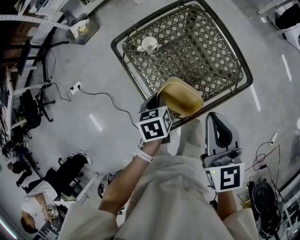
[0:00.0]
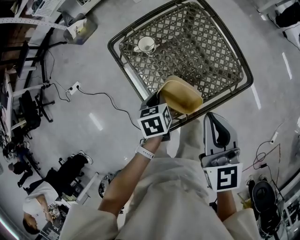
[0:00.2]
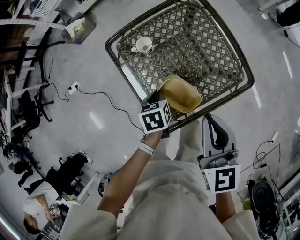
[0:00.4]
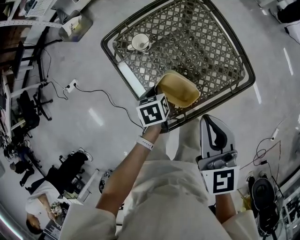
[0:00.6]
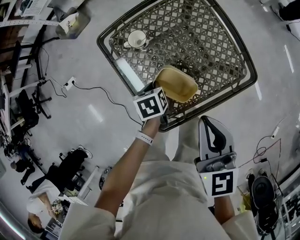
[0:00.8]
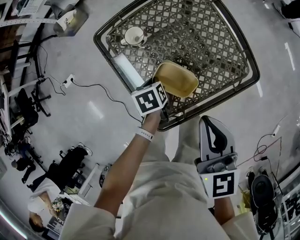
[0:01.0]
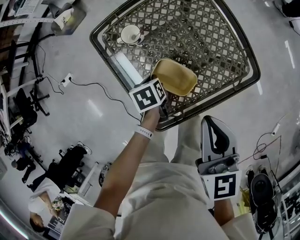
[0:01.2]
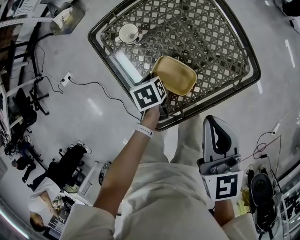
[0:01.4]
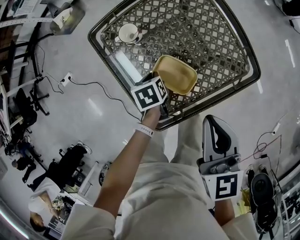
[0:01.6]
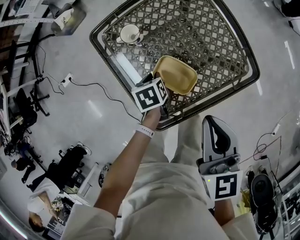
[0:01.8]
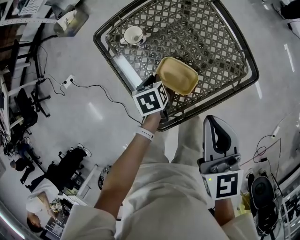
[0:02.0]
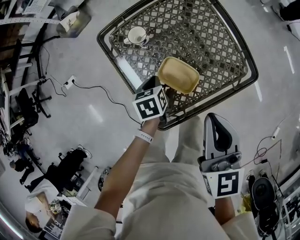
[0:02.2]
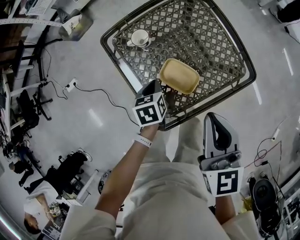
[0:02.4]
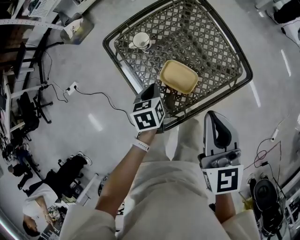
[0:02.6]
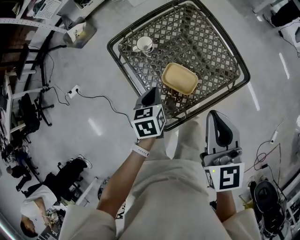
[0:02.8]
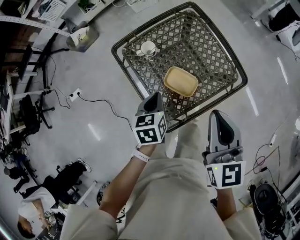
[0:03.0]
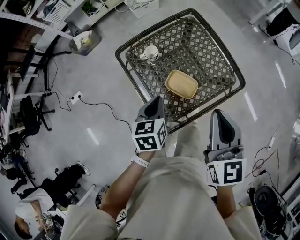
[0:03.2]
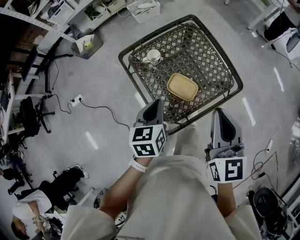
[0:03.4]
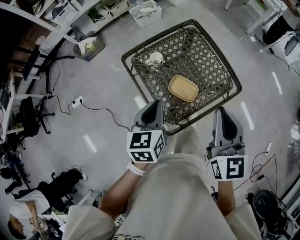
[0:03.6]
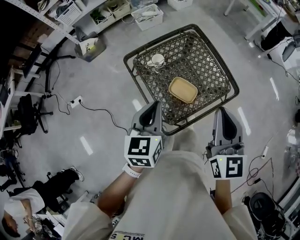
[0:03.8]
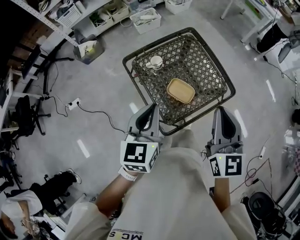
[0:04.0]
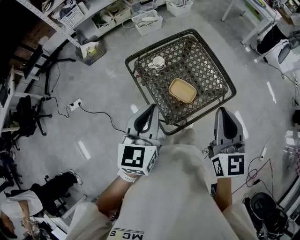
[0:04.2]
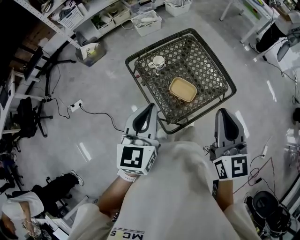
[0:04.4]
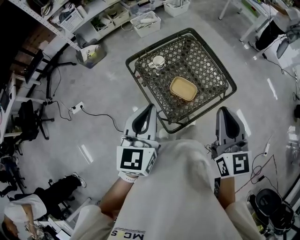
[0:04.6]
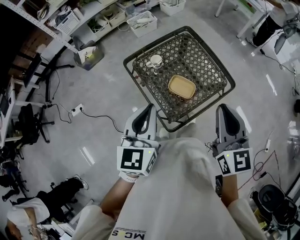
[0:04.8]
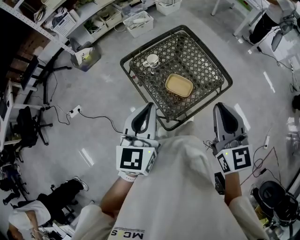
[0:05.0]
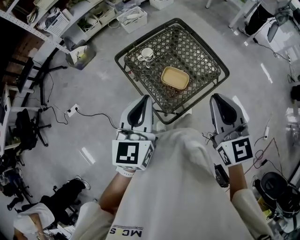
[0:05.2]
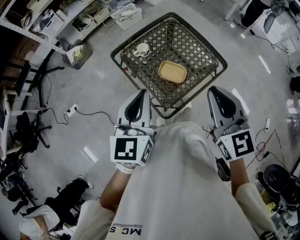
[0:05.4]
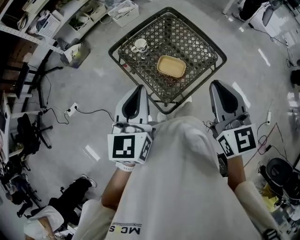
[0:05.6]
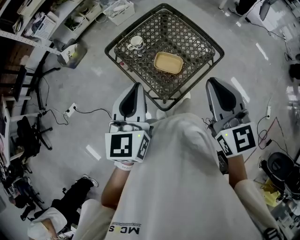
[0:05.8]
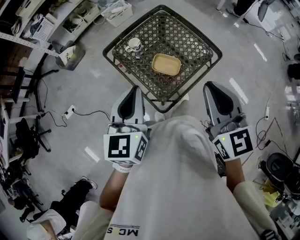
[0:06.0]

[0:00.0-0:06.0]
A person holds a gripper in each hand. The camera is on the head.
0:00.0 to 0:01.6: The right gripper shifts about 5 cm downward, while the left gripper shifts some 15 cm downward.
0:01.6 to 0:03.0: The left gripper moves upward, roughly 15 cm, and turns by roughly 30 degrees. Meanwhile the right gripper moves upward, approximately 10 cm.
0:03.0 to 0:04.4: The right gripper shifts about 10 cm upward and backward. Meanwhile the left gripper moves upward, approximately 25 cm, and tilts its fingers approximately 30 degrees upward.
0:04.4 to 0:06.0: The grippers stay close to where they were, moving slightly.

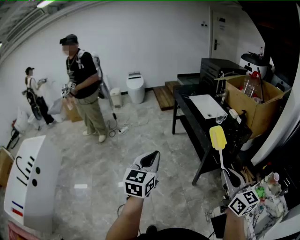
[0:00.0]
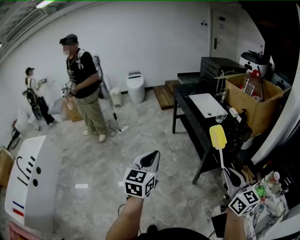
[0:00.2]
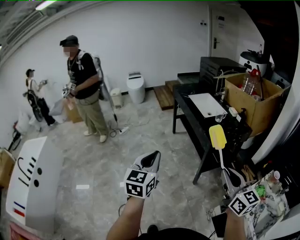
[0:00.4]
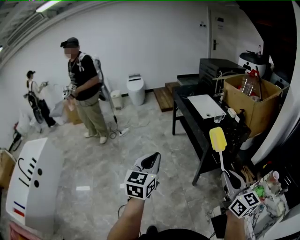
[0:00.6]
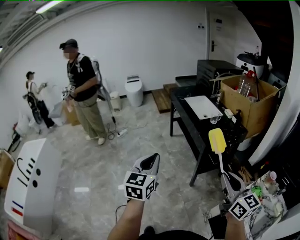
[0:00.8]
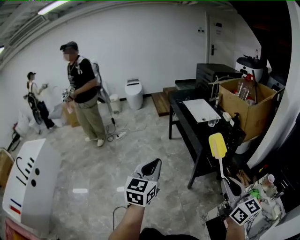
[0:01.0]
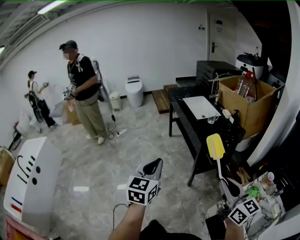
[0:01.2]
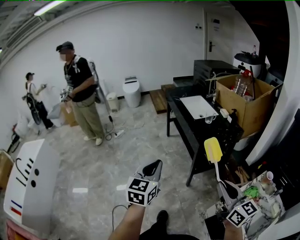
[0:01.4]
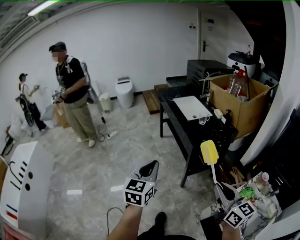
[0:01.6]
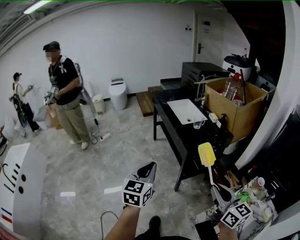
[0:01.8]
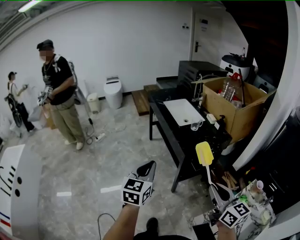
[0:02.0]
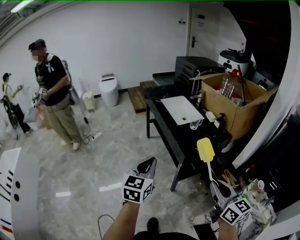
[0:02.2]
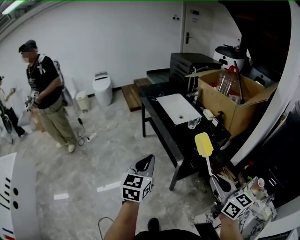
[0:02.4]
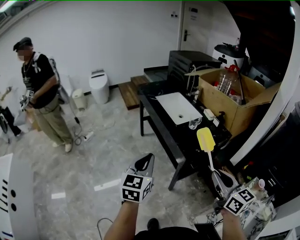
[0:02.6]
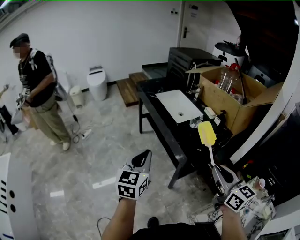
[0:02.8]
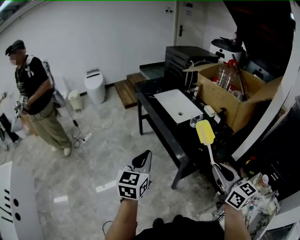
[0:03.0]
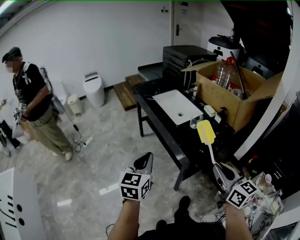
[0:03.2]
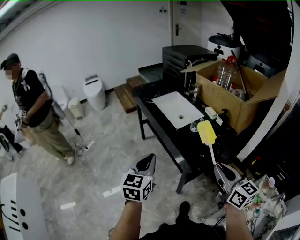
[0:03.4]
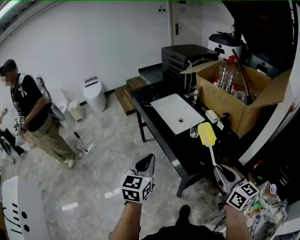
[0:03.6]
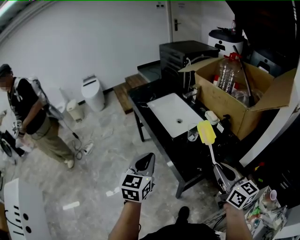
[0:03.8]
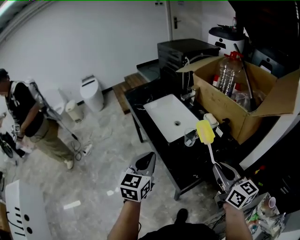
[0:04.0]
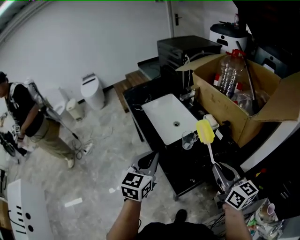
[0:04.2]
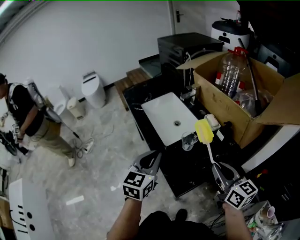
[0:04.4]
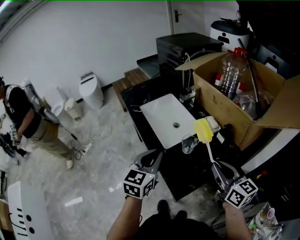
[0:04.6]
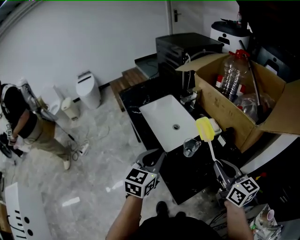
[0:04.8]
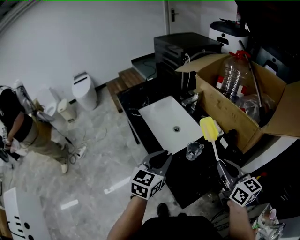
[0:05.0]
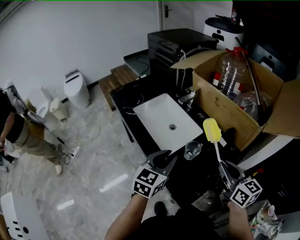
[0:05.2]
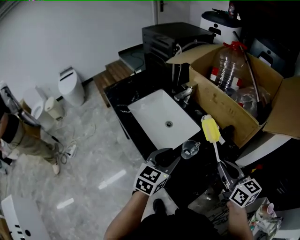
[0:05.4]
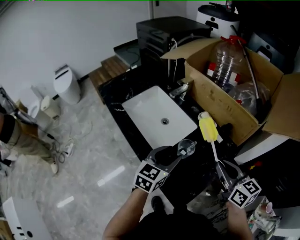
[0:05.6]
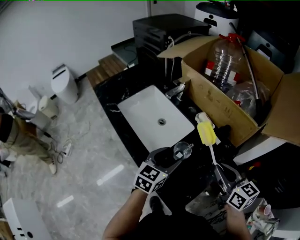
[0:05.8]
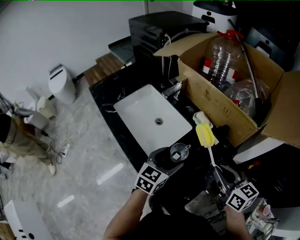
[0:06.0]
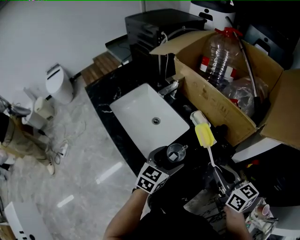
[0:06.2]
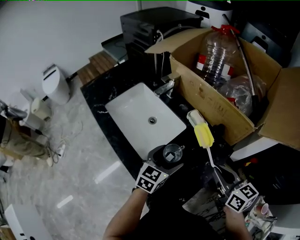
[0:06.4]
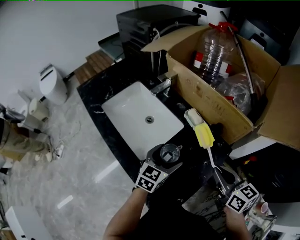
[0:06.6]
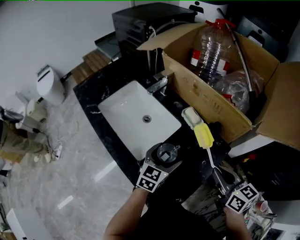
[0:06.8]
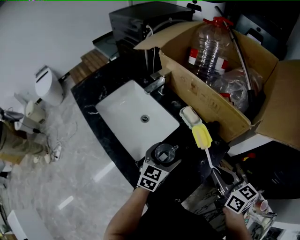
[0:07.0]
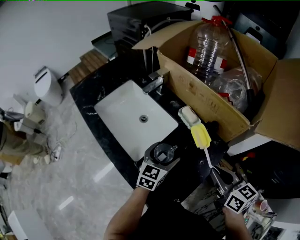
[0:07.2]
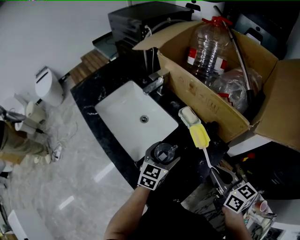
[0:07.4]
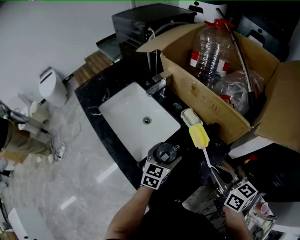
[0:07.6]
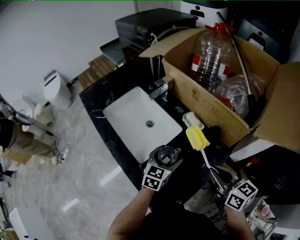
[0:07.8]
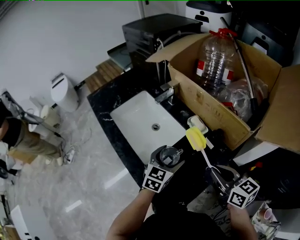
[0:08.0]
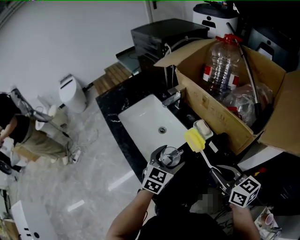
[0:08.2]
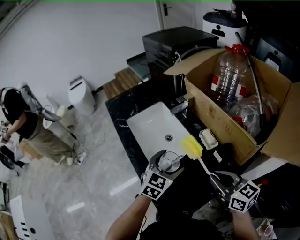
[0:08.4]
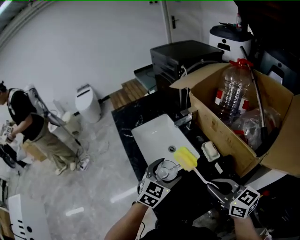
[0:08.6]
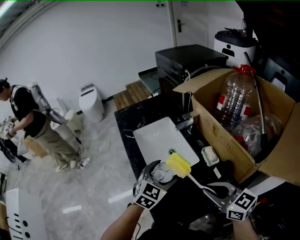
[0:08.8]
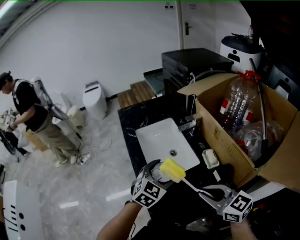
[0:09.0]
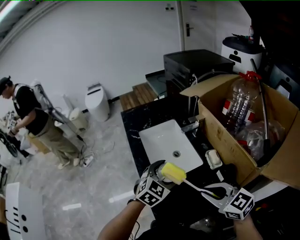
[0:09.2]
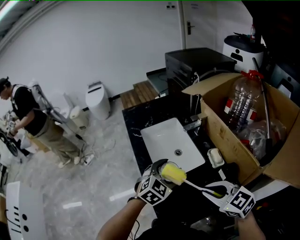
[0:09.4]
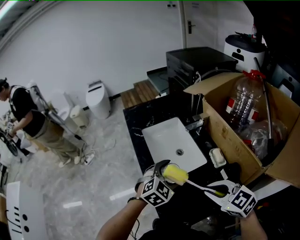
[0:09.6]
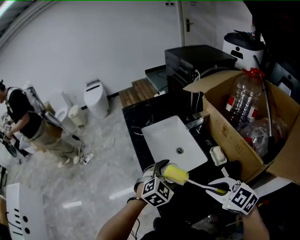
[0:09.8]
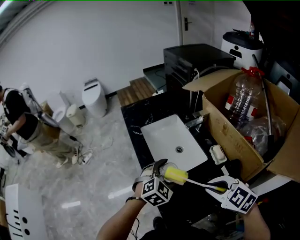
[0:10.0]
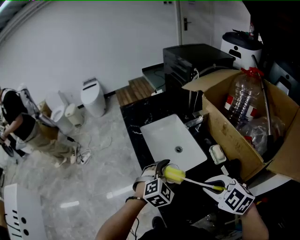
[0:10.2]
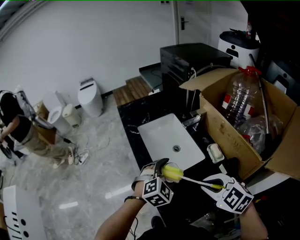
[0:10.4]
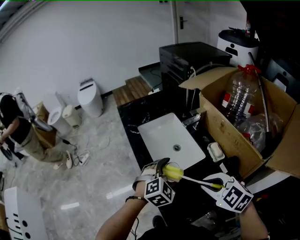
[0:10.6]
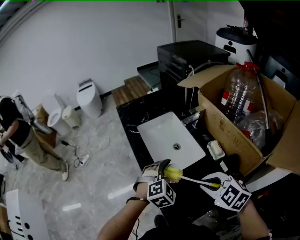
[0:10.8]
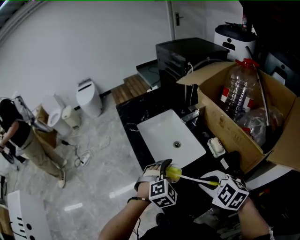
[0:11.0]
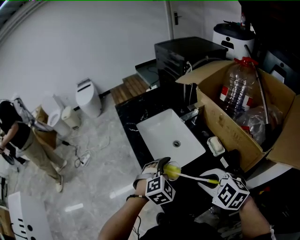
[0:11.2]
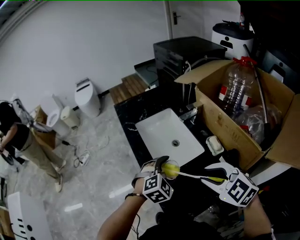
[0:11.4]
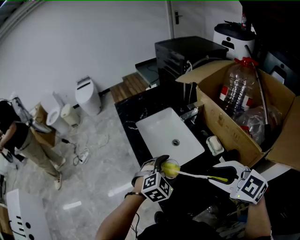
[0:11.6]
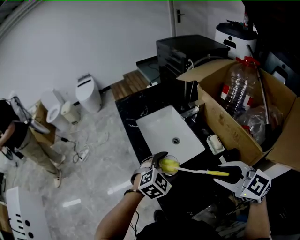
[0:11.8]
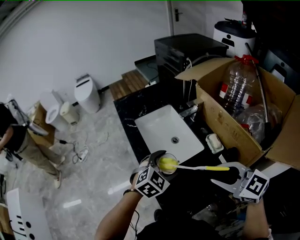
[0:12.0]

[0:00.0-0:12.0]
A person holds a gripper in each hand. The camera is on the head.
0:00.0 to 0:01.6: The grippers both shift to the right by roughly 10 cm.
0:01.6 to 0:03.0: The two grippers go roughly 25 cm forward.
0:03.0 to 0:04.4: The two grippers go roughly 30 cm forward and to the right.
0:04.4 to 0:06.0: The left gripper shifts roughly 20 cm forward, downward and to the right, swivels roughly 30 degrees, and opens its fingers. The right gripper shifts roughly 10 cm forward and downward.
0:06.0 to 0:07.6: The left gripper moves forward and downward, about 10 cm.
0:07.6 to 0:09.0: The left gripper heads upward, covering some 10 cm, and turns by some 30 degrees, while the right gripper changes place by some 10 cm, and swivels some 50 degrees.
0:09.0 to 0:10.4: The left gripper turns by some 20 degrees; the right gripper changes its angle by some 40 degrees.
0:10.4 to 0:12.0: The right gripper is displaced upward by about 5 cm, rotates roughly 20 degrees, and opens up.

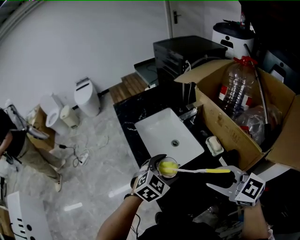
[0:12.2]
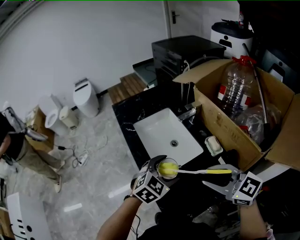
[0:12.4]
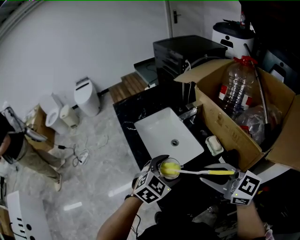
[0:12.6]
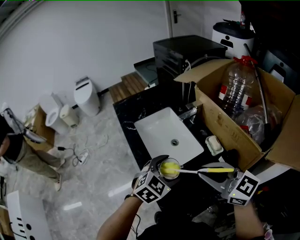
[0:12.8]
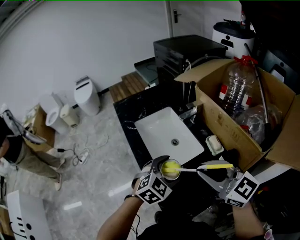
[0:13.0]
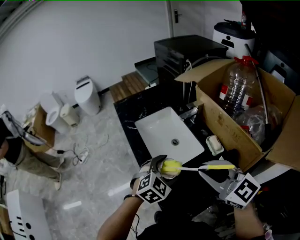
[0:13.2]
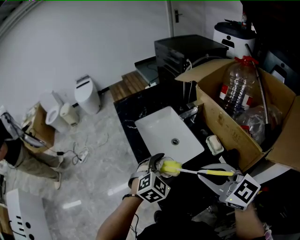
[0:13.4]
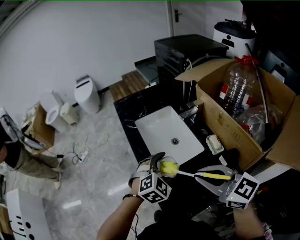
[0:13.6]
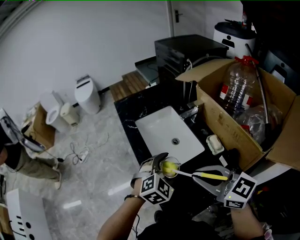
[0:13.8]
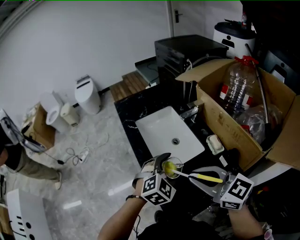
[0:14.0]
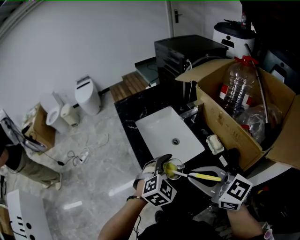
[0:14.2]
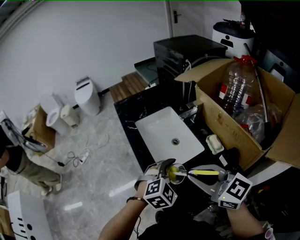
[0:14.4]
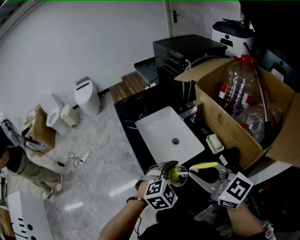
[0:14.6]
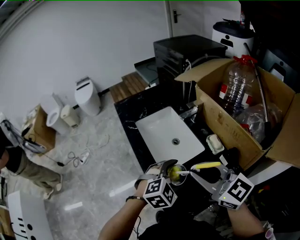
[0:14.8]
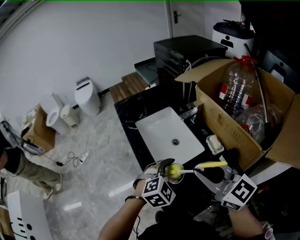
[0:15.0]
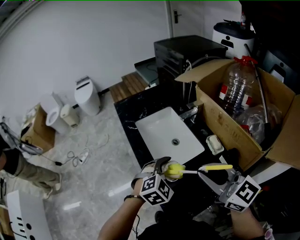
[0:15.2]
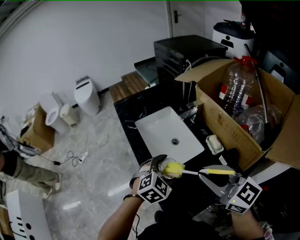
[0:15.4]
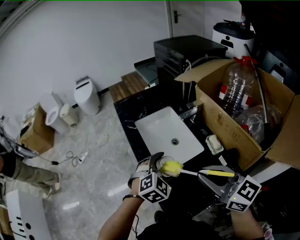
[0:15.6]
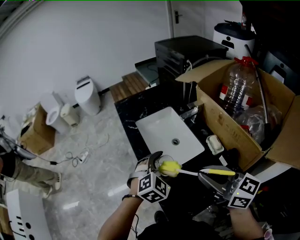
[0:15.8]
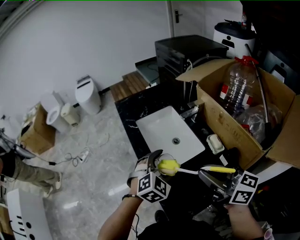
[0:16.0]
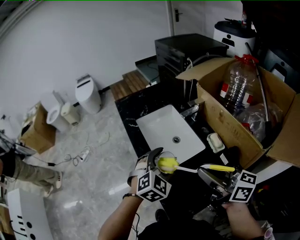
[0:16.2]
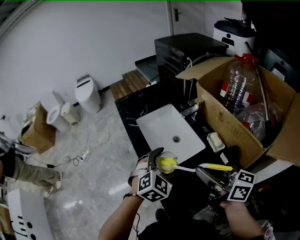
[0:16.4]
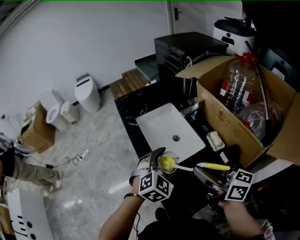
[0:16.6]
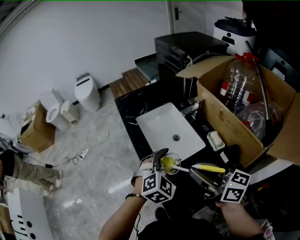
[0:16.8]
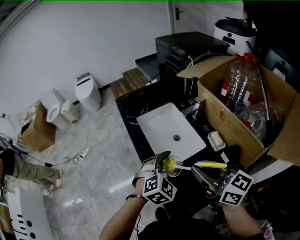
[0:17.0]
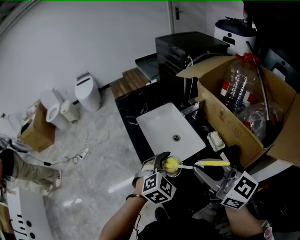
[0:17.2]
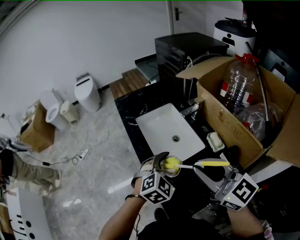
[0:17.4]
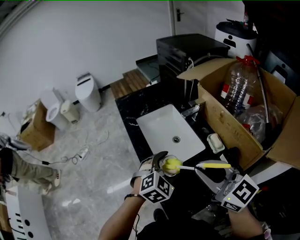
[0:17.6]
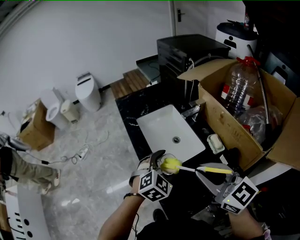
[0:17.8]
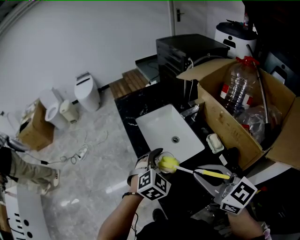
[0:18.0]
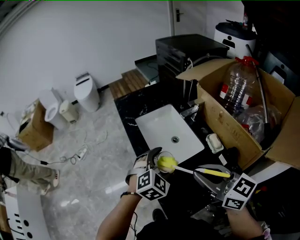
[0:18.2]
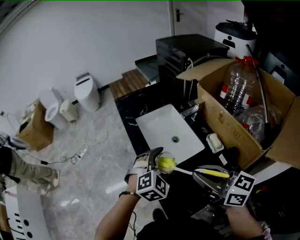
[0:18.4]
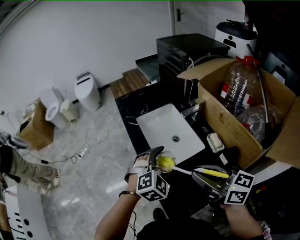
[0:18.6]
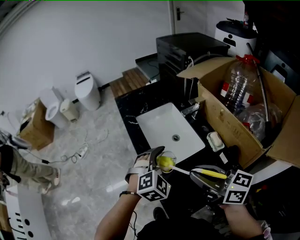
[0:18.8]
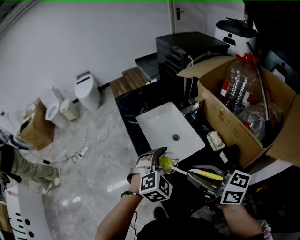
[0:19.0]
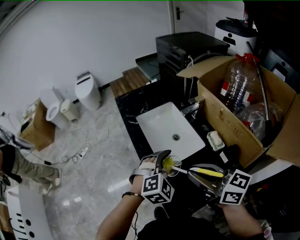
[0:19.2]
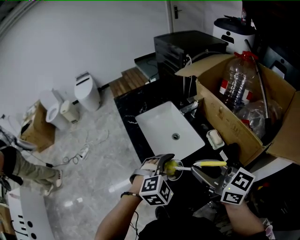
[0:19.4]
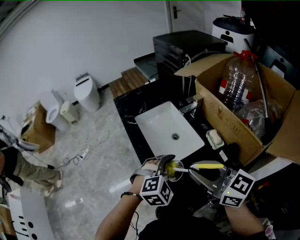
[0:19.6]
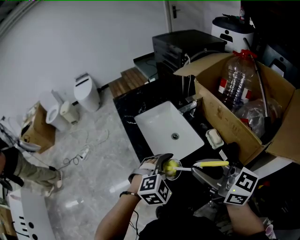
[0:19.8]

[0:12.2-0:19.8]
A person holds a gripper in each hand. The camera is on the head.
0:12.2 to 0:13.8: The right gripper heads to the left, covering approximately 5 cm, and closes.
0:13.8 to 0:15.2: The grippers make only small movements.
0:15.2 to 0:16.8: The right gripper turns by roughly 30 degrees.
0:18.2 to 0:19.8: The left gripper shifts some 5 cm backward.
